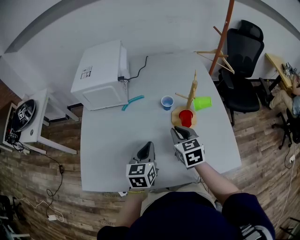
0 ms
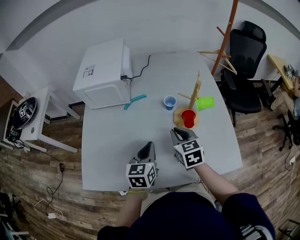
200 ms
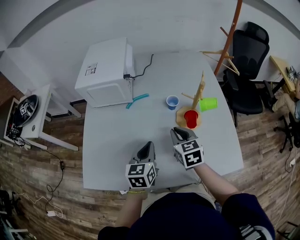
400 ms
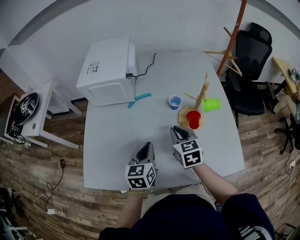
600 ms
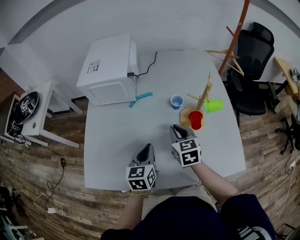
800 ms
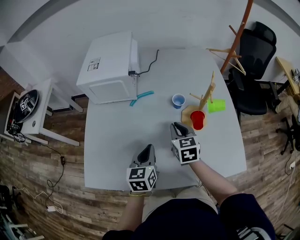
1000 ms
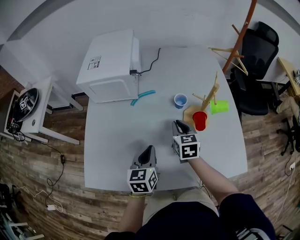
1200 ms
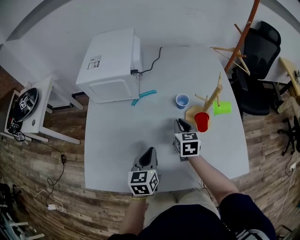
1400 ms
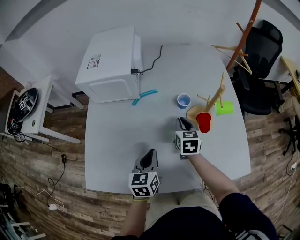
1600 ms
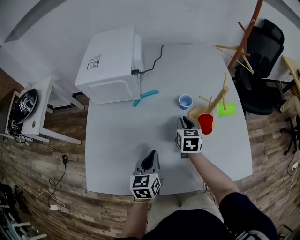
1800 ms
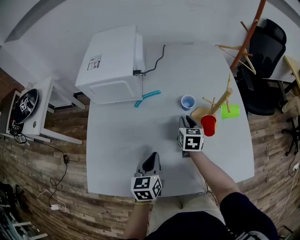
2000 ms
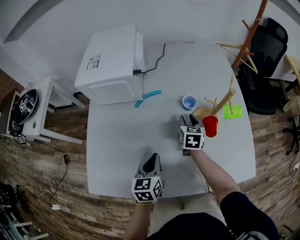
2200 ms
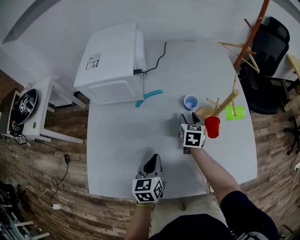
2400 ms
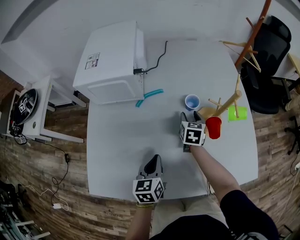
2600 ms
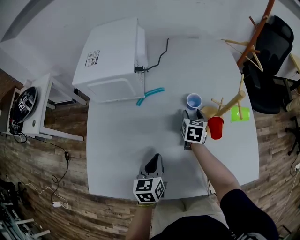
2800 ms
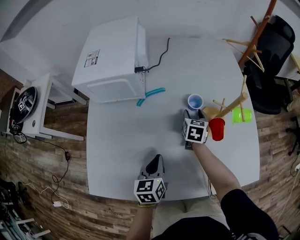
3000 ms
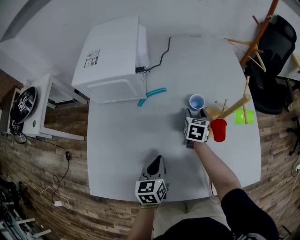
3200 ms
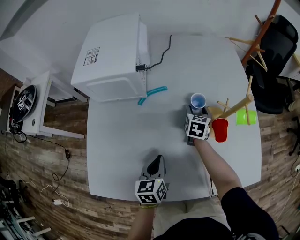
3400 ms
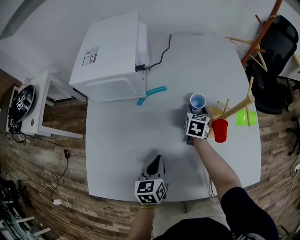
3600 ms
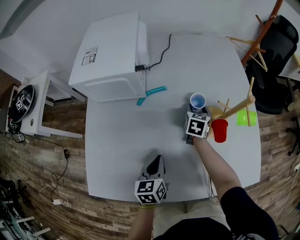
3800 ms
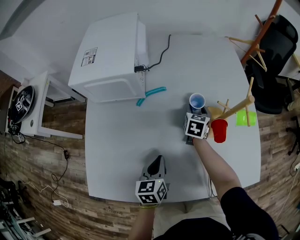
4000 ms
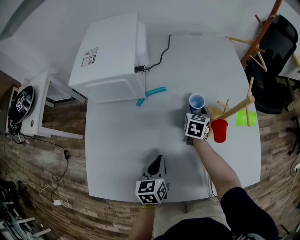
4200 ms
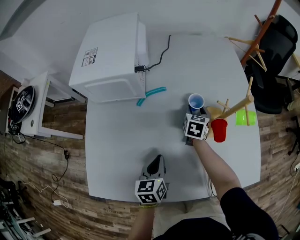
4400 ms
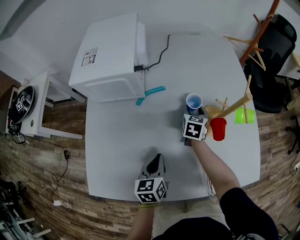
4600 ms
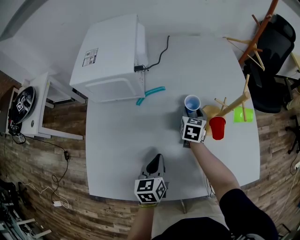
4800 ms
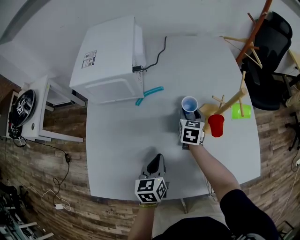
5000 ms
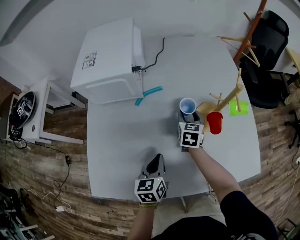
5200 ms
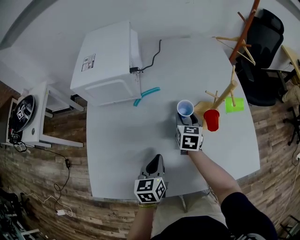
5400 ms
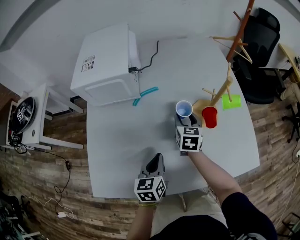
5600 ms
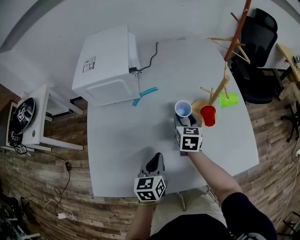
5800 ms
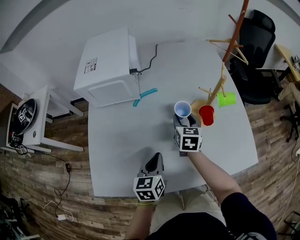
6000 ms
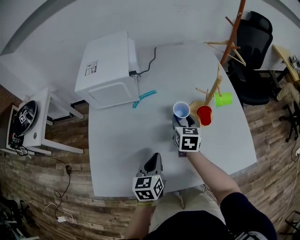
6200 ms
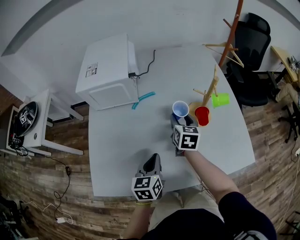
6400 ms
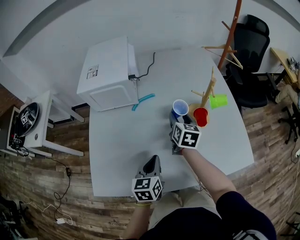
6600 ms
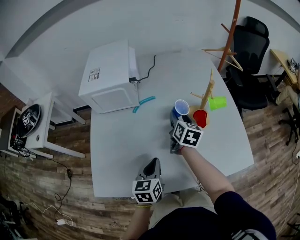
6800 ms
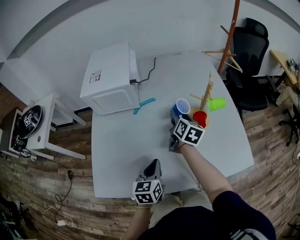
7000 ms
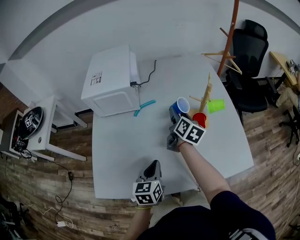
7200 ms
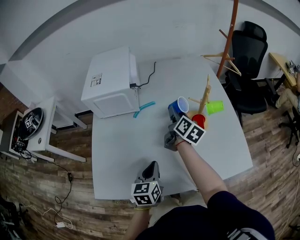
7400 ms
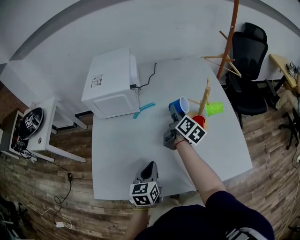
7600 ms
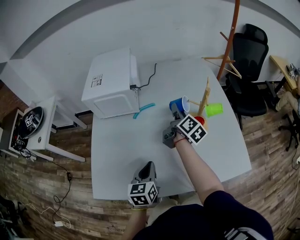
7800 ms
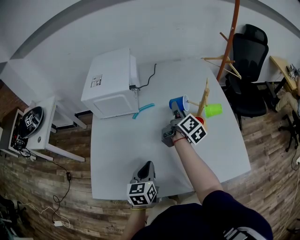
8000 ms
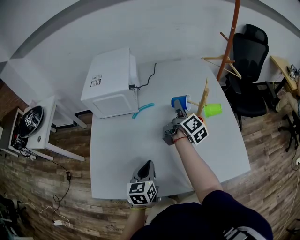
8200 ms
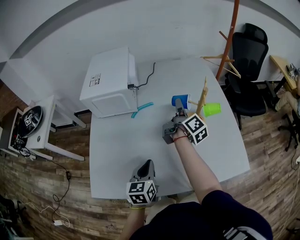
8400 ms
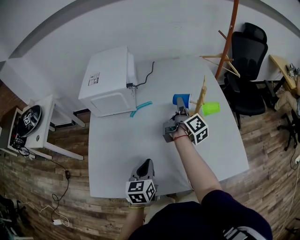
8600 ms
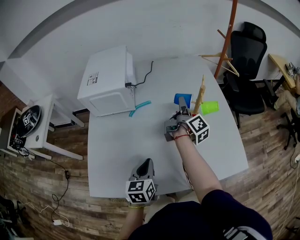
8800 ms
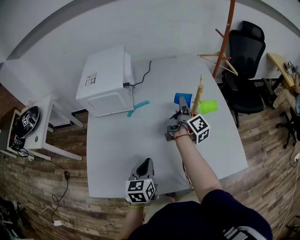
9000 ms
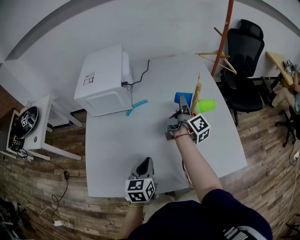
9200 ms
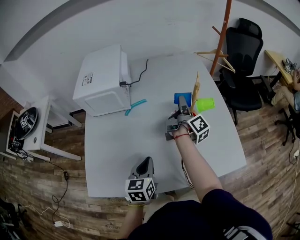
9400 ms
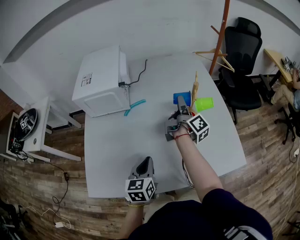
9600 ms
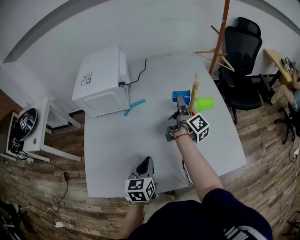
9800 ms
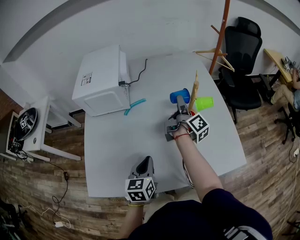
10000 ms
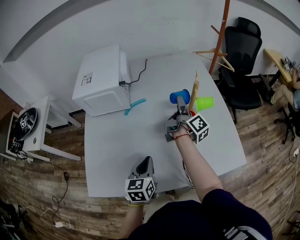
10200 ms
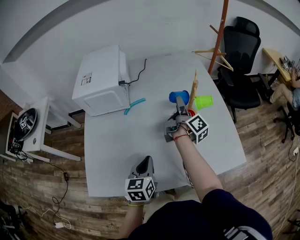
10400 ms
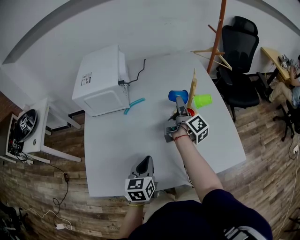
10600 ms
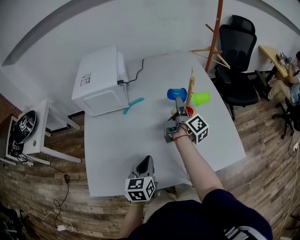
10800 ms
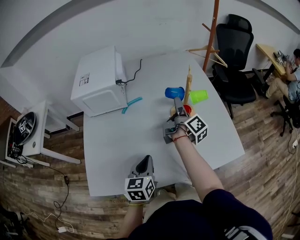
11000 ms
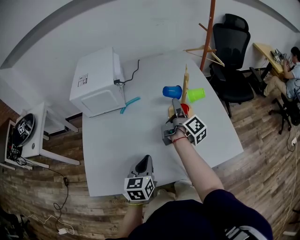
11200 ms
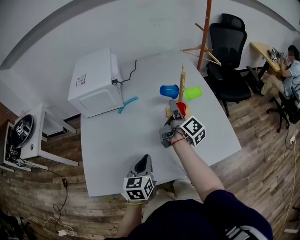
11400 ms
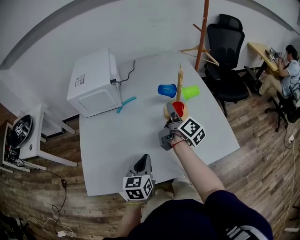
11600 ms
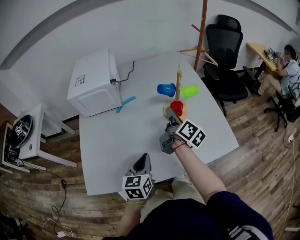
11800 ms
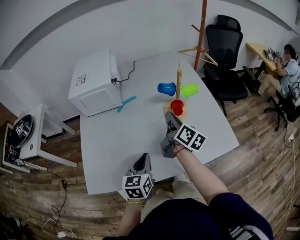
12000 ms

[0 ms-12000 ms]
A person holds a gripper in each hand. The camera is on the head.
0 ms to 1600 ms: The right gripper travels forward and downward by roughly 10 cm; the left gripper travels to the left by approximately 5 cm.
1600 ms to 3000 ms: The right gripper is displaced forward and downward by approximately 10 cm, and opens up.
3000 ms to 4400 ms: There are only small adjustments of the grippers.
4400 ms to 6000 ms: The left gripper changes place by about 5 cm. Meanwhile the right gripper travels backward and upward by roughly 15 cm.
6000 ms to 7600 ms: The right gripper goes some 10 cm upward, and twists about 50 degrees clockwise, seen from behind.
7600 ms to 9000 ms: The right gripper shifts about 5 cm to the right, and swivels some 30 degrees.
9000 ms to 10400 ms: The grippers move only a little.
10400 ms to 12000 ms: The left gripper shifts by some 5 cm; the right gripper shifts roughly 15 cm backward, turns by approximately 30 degrees, and closes its fingers.

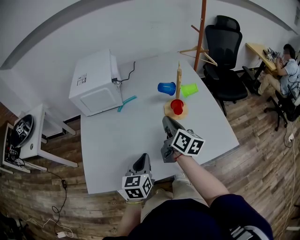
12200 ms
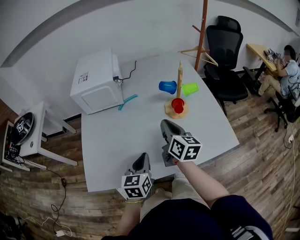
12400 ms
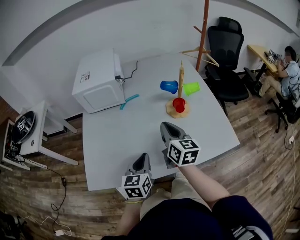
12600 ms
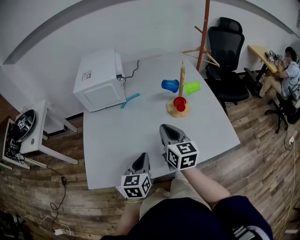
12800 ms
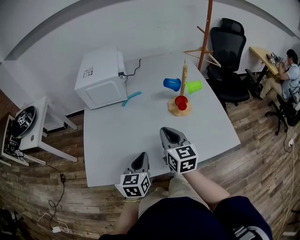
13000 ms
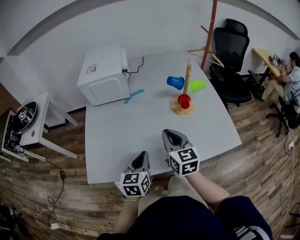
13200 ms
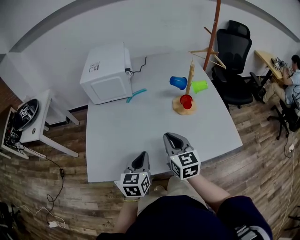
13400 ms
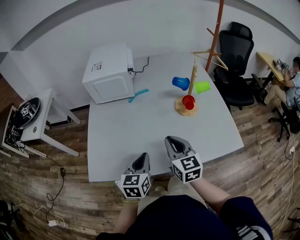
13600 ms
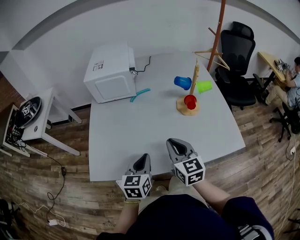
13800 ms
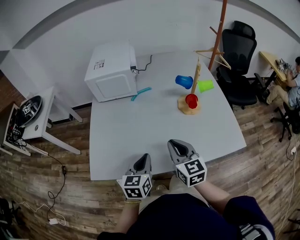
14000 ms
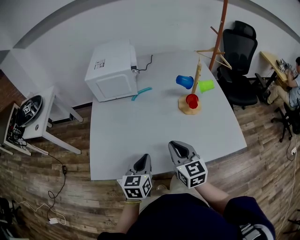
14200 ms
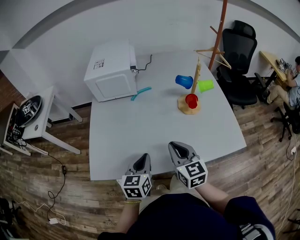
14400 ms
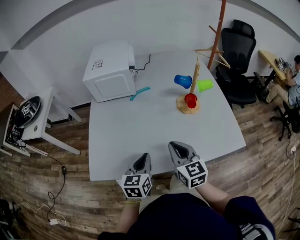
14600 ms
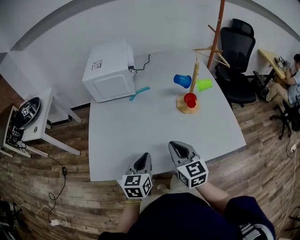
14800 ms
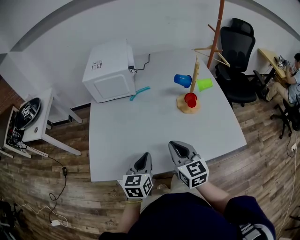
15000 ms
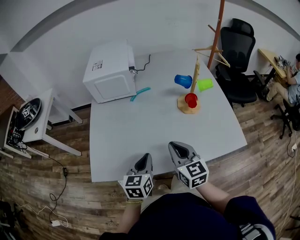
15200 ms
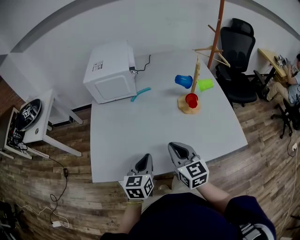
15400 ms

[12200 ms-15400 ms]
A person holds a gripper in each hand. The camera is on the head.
12200 ms to 13800 ms: The right gripper moves backward and to the left, about 15 cm, and rotates roughly 40 degrees. The left gripper ends up roughly 5 cm from where it was.
13800 ms to 15400 ms: The grippers make only small movements.

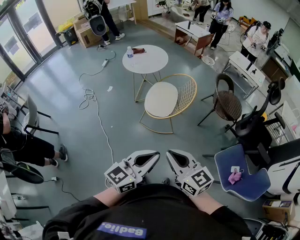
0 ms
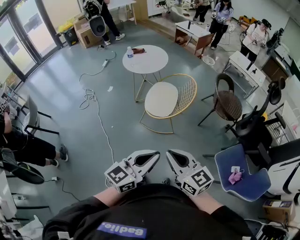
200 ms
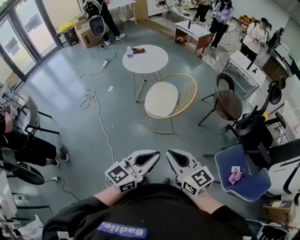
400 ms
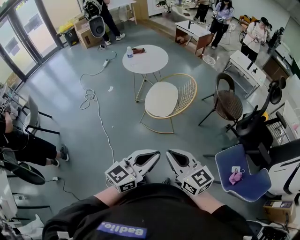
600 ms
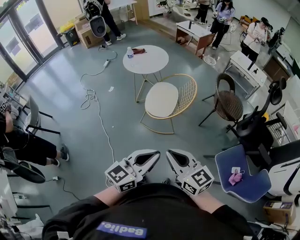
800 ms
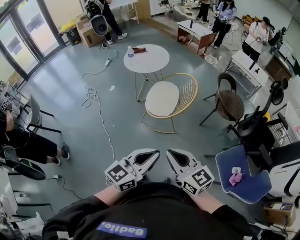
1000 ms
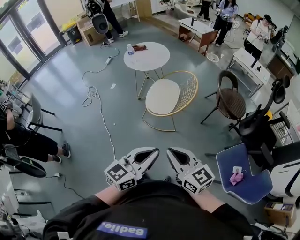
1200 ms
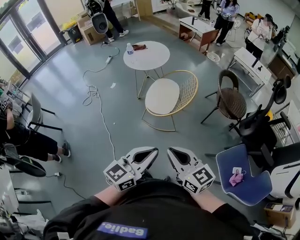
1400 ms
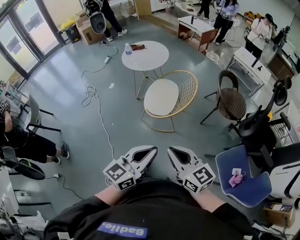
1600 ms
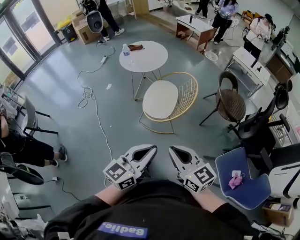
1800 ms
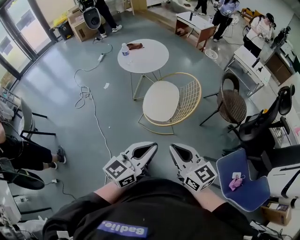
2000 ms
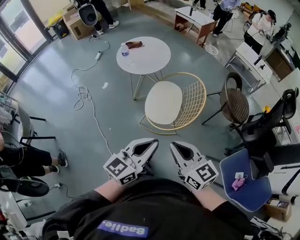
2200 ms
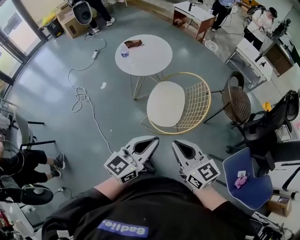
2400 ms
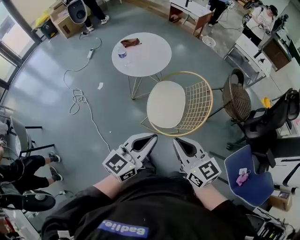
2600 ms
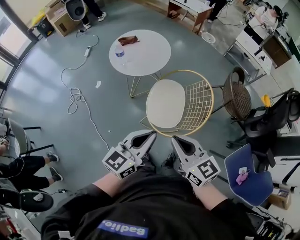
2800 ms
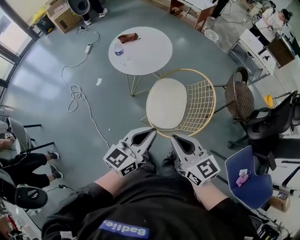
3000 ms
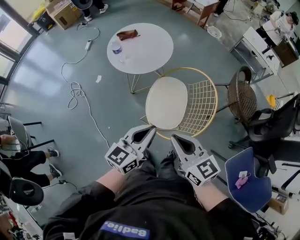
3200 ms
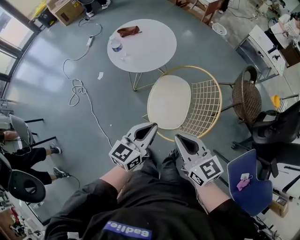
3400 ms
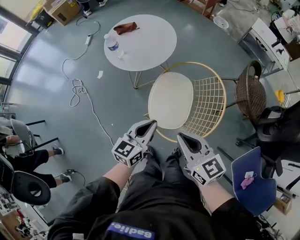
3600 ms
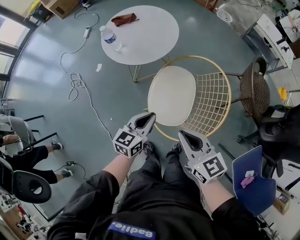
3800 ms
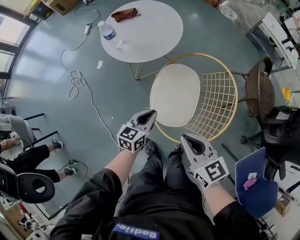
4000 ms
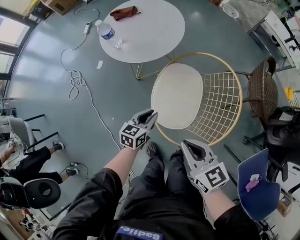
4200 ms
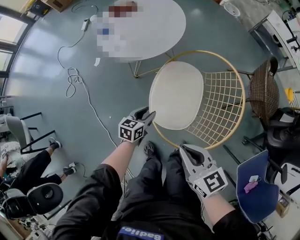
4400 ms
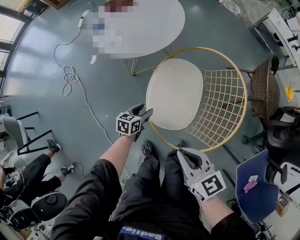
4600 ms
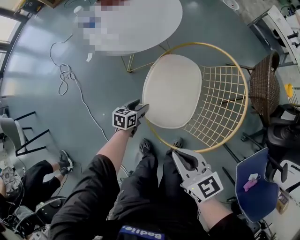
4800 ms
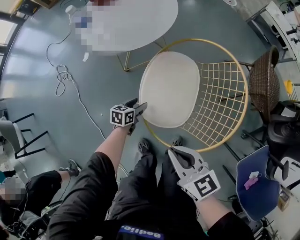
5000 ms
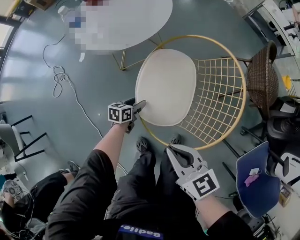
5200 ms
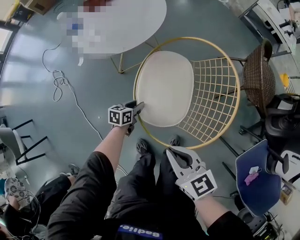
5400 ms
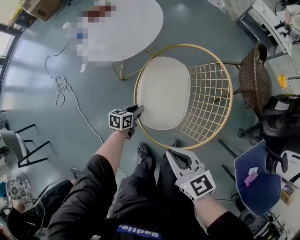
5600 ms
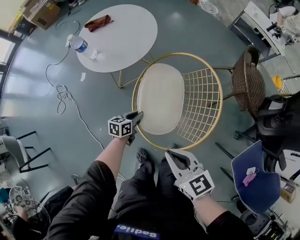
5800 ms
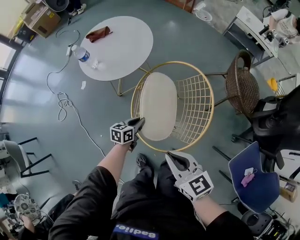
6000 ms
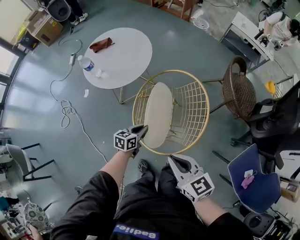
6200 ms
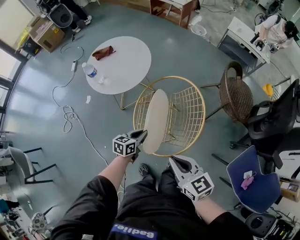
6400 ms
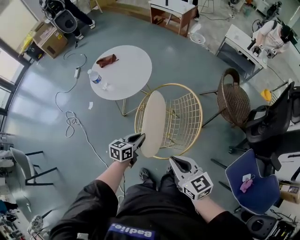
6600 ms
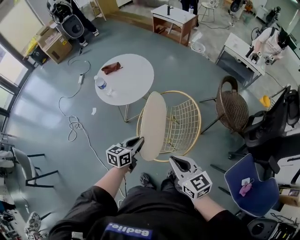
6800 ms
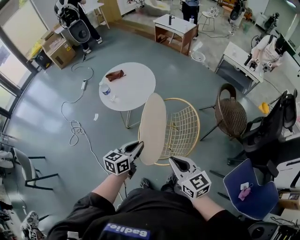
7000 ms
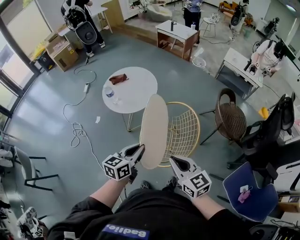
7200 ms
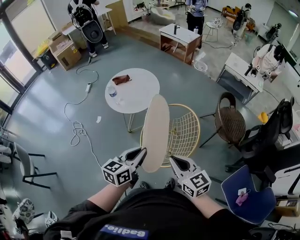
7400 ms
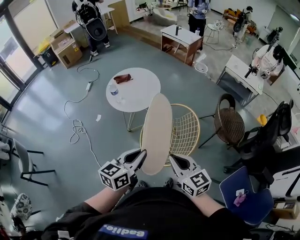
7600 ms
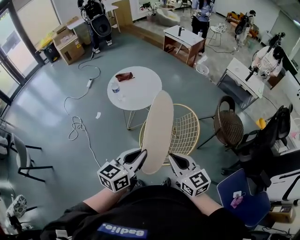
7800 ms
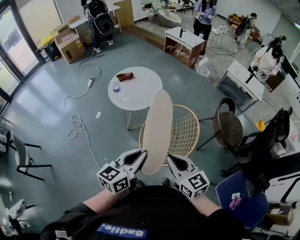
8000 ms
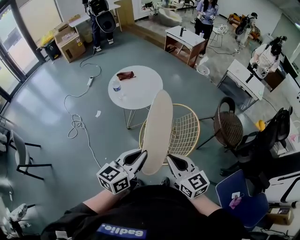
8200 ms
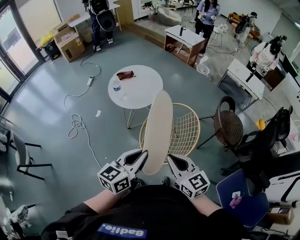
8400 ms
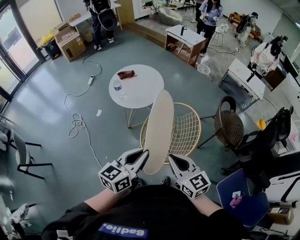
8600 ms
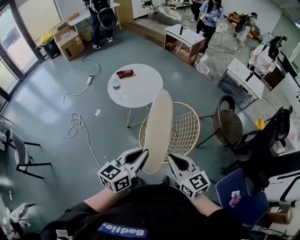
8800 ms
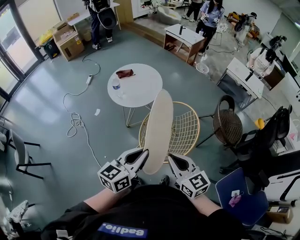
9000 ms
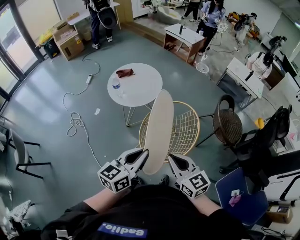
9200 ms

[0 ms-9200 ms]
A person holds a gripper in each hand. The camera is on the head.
0 ms to 1600 ms: The left gripper ends up some 5 cm from where it was; the right gripper changes place by about 5 cm.
1600 ms to 3000 ms: Both grippers move forward and to the left, some 35 cm.
3000 ms to 4600 ms: The left gripper is displaced downward by approximately 40 cm, points its fingers some 40 degrees further downward, and opens, while the right gripper moves downward, about 20 cm.
4600 ms to 6200 ms: The left gripper shifts approximately 15 cm upward and to the right, and closes up. Meanwhile the right gripper shifts about 10 cm upward.
6200 ms to 7600 ms: The right gripper goes roughly 15 cm upward. The left gripper is displaced upward by some 35 cm, and turns by approximately 20 degrees.
7600 ms to 9200 ms: The grippers move only a little.
